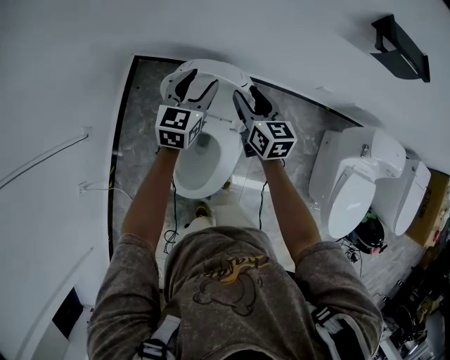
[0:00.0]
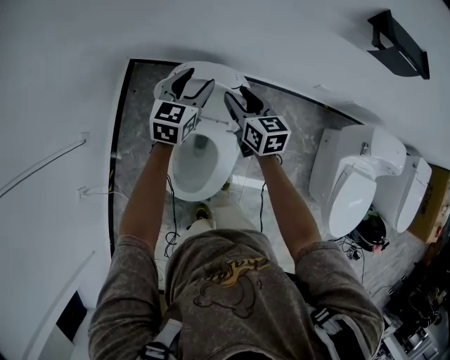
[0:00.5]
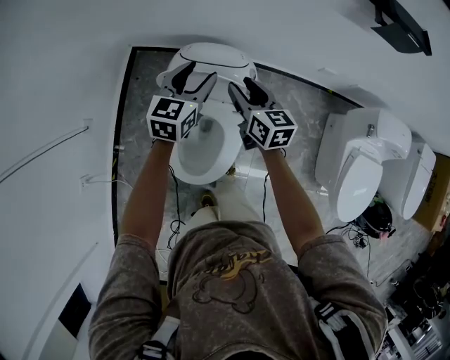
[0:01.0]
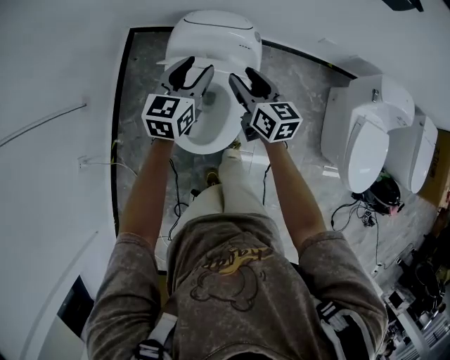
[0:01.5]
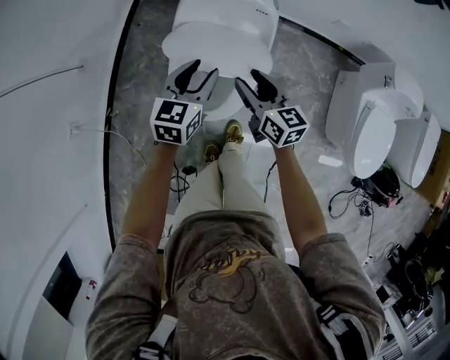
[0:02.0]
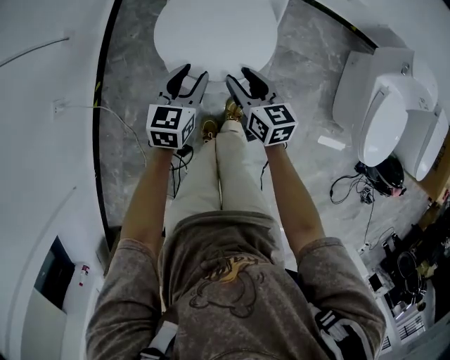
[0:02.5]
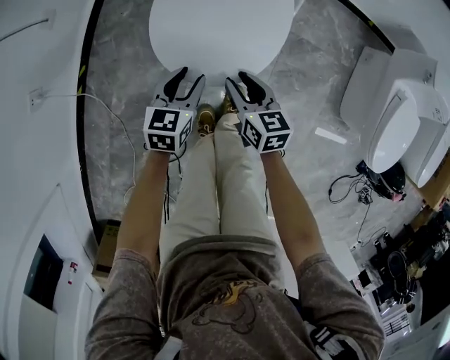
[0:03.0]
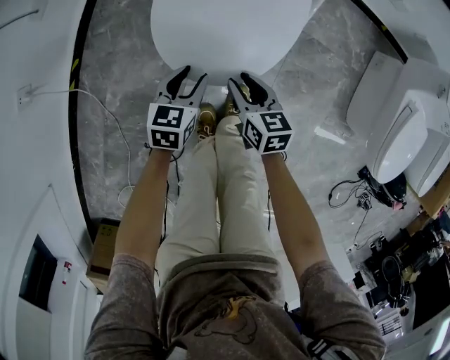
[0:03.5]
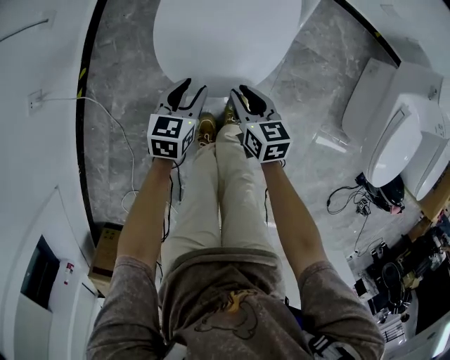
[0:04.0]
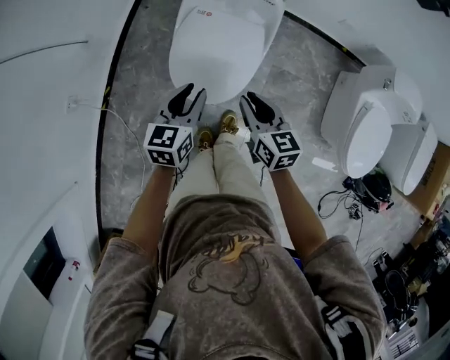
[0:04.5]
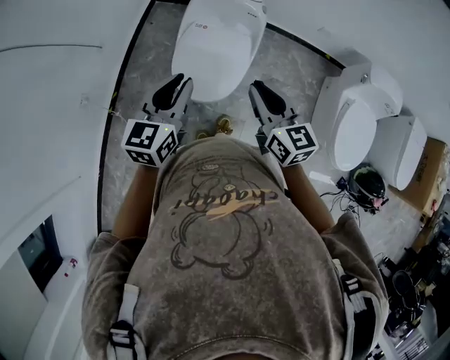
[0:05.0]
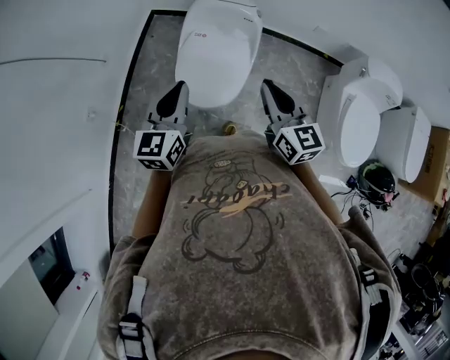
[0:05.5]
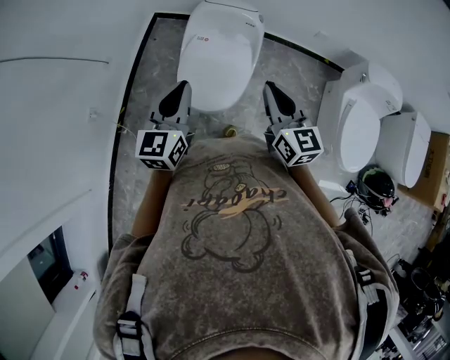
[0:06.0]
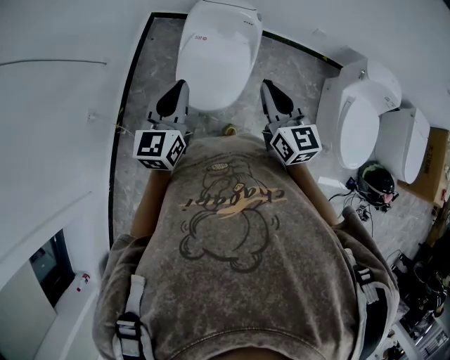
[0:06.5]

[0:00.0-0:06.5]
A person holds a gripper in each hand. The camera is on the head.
0:00.0 to 0:02.0: The grippers both shift backward by approximately 30 cm.
0:02.0 to 0:04.5: The two grippers go about 10 cm backward. The left gripper goes downward and returns, approximately 35 cm each way, while the right gripper goes downward and returns, about 30 cm each way, and closes its fingers.
0:04.5 to 0:06.5: Both grippers move upward, roughly 20 cm. The left gripper turns by about 20 degrees, and closes up. Meanwhile the right gripper swivels about 20 degrees.

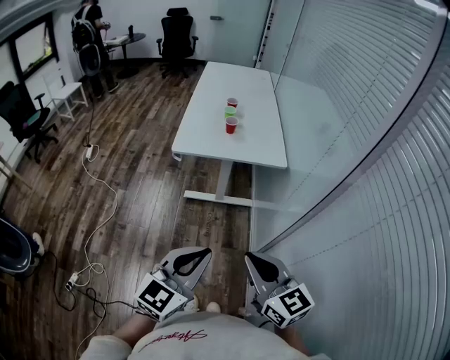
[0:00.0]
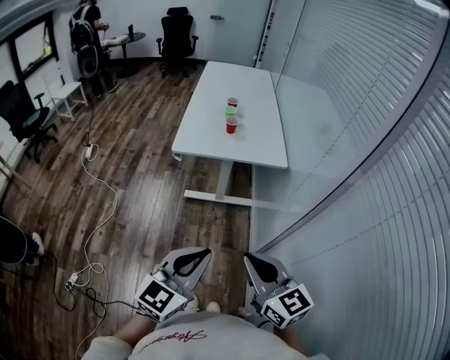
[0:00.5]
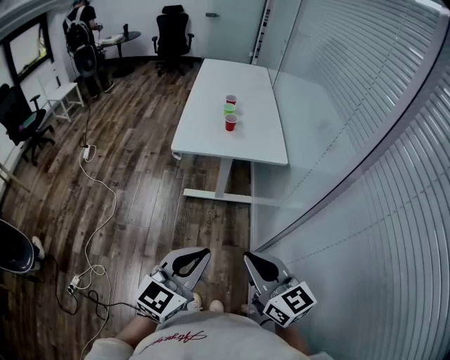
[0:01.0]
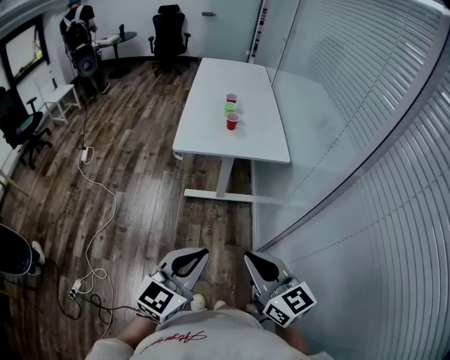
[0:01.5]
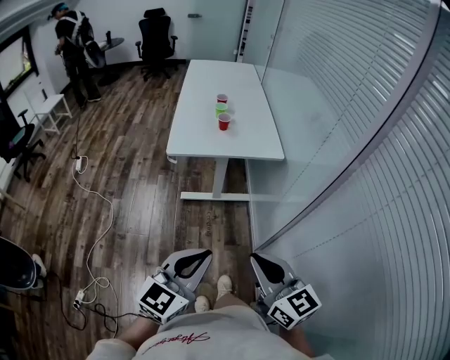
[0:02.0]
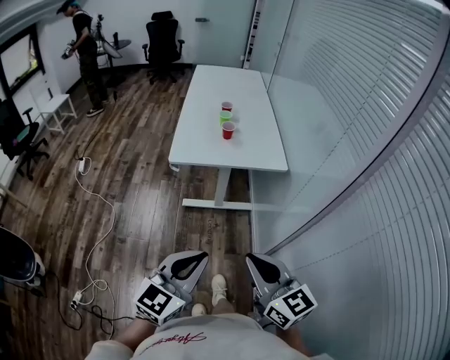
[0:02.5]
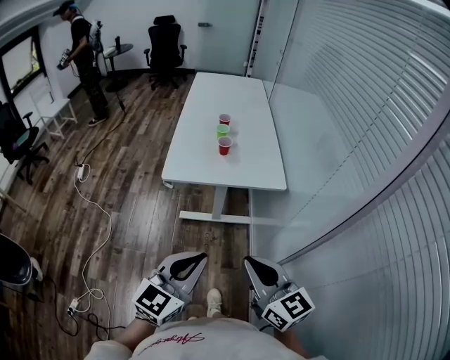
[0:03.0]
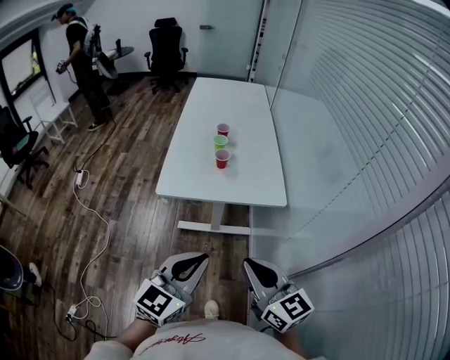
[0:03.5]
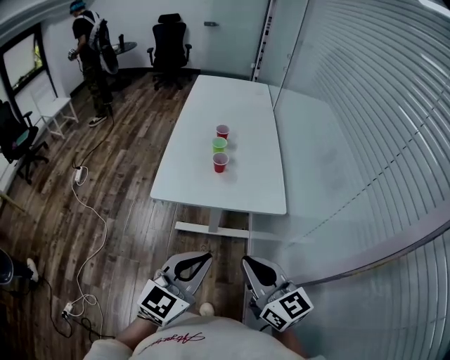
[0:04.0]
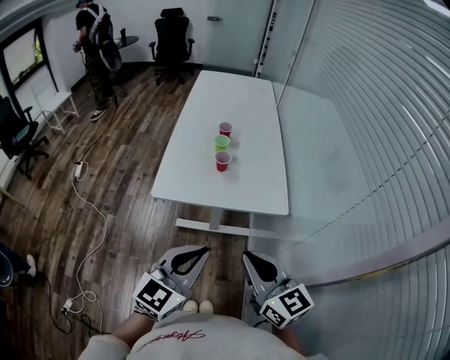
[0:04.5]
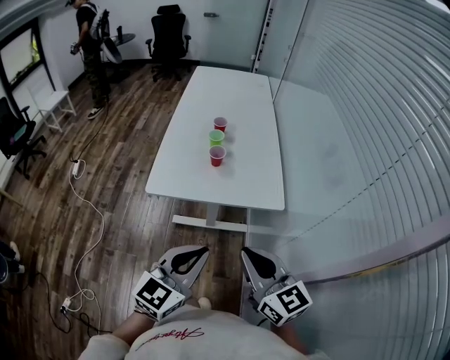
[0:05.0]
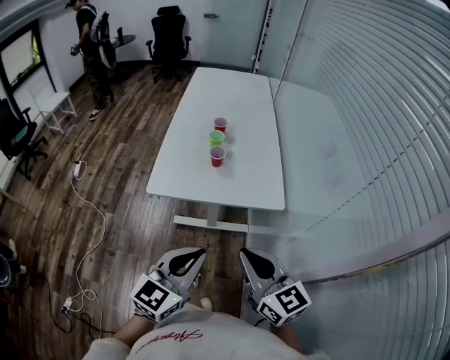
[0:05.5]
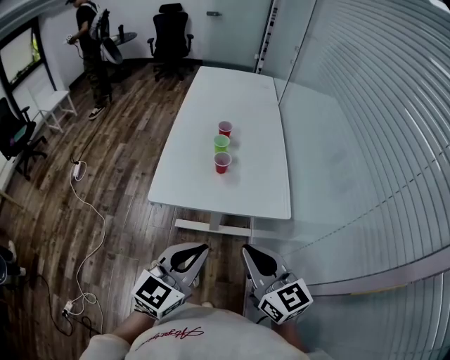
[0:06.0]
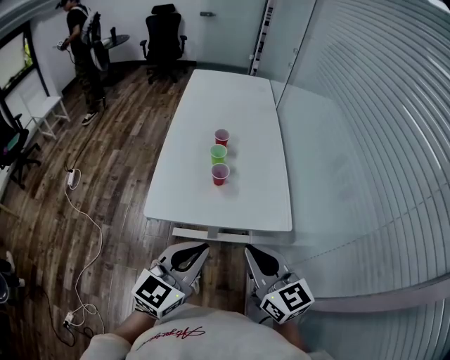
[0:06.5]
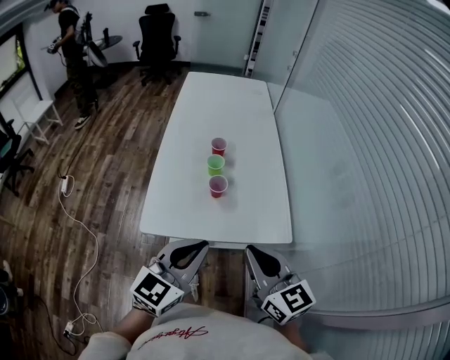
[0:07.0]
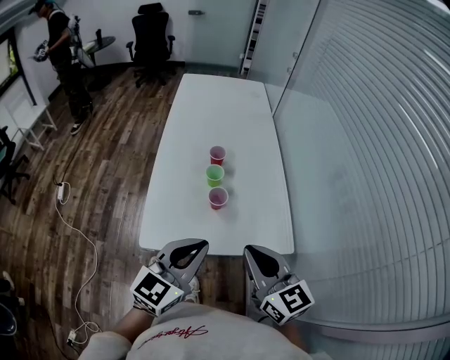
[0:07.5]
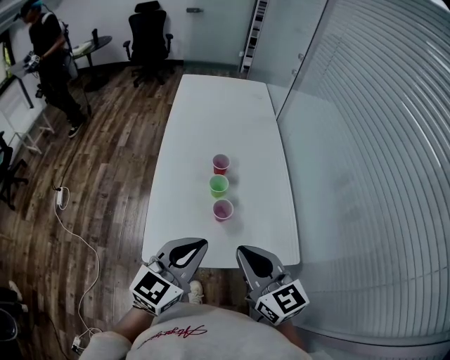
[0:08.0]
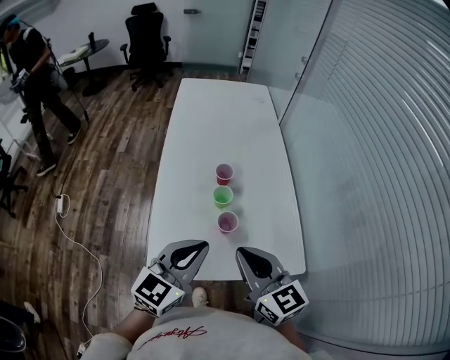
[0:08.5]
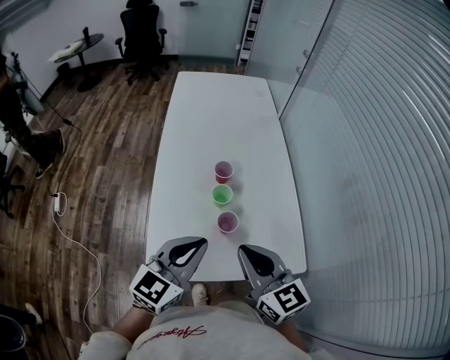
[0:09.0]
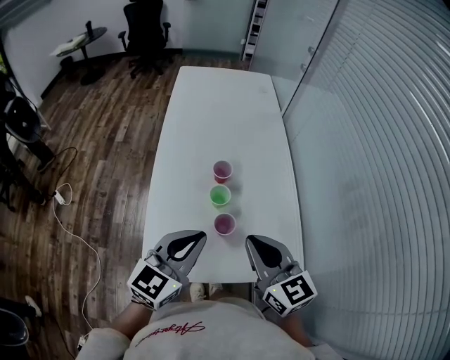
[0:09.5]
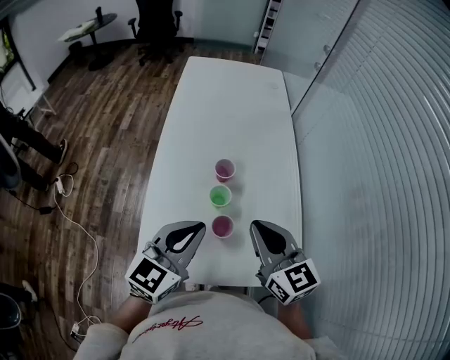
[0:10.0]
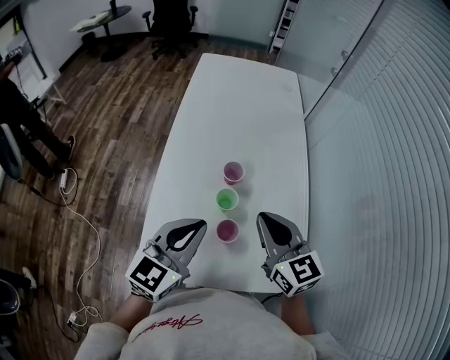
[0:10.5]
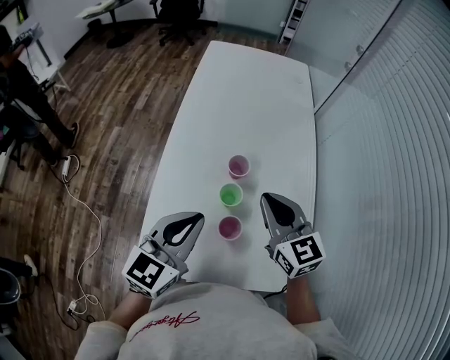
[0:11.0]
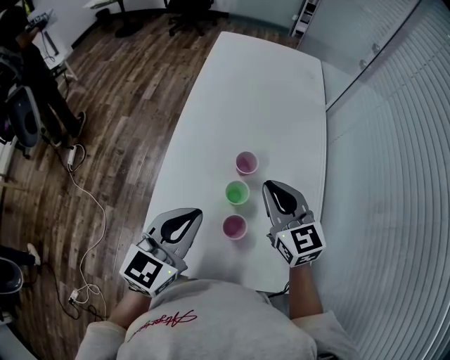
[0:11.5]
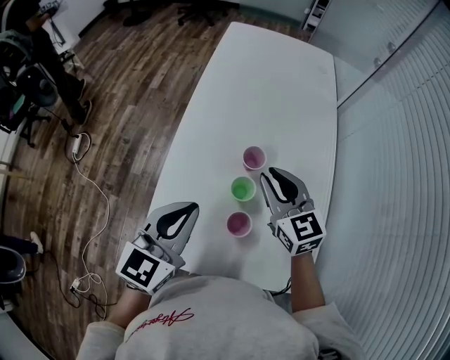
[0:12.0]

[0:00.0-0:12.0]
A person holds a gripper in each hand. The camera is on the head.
0:00.0 to 0:02.0: There are only small adjustments of the grippers.
0:02.0 to 0:04.0: Both grippers travel together forward, approximately 30 cm.
0:04.0 to 0:06.0: The two grippers go roughly 10 cm forward.
0:06.0 to 0:08.0: Both grippers move forward, about 25 cm.
0:08.0 to 0:10.0: Both grippers travel together forward, some 15 cm.
0:10.0 to 0:12.0: The left gripper moves forward, approximately 5 cm. The right gripper goes roughly 20 cm forward and downward.

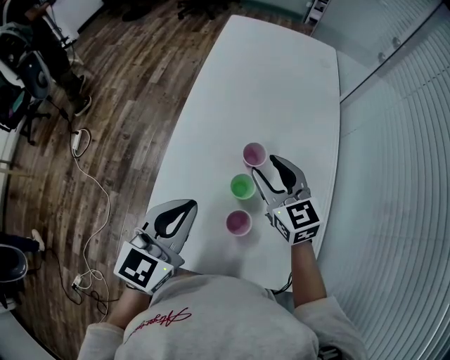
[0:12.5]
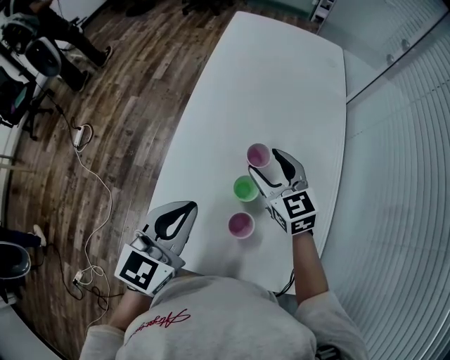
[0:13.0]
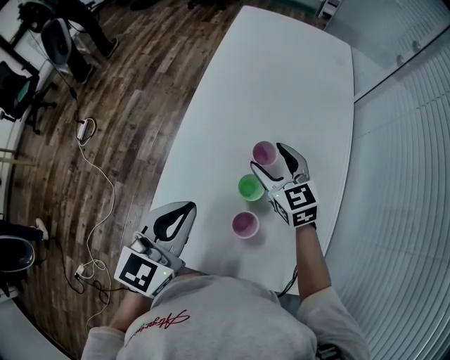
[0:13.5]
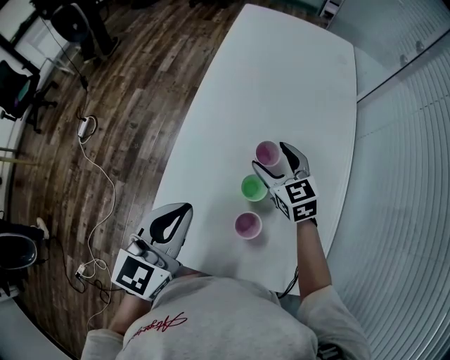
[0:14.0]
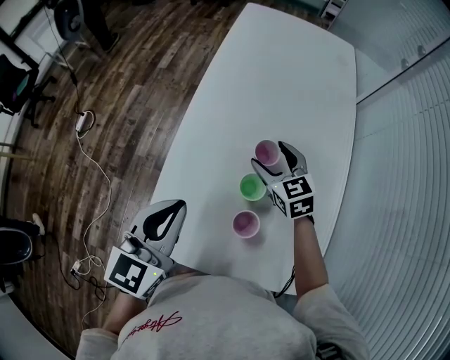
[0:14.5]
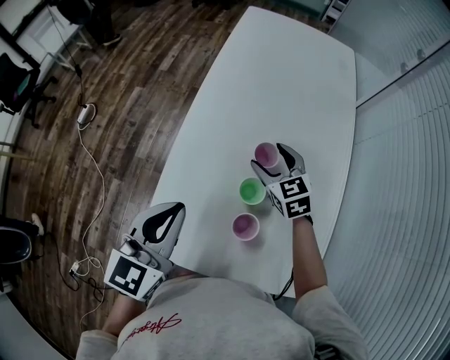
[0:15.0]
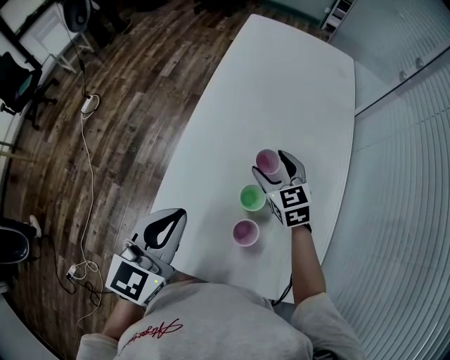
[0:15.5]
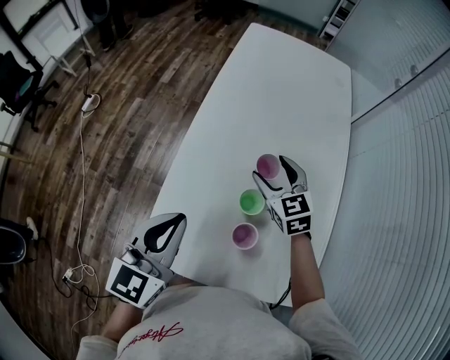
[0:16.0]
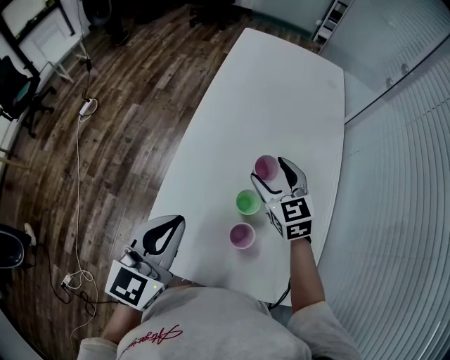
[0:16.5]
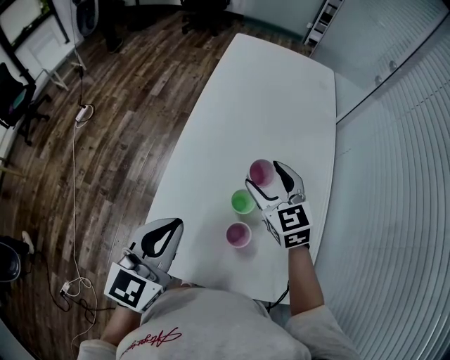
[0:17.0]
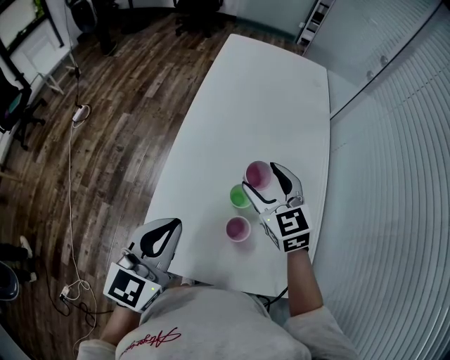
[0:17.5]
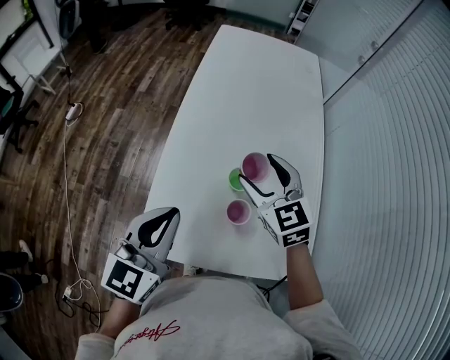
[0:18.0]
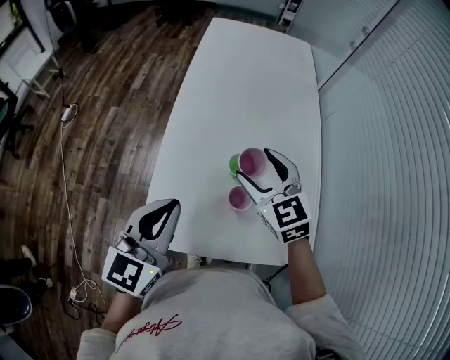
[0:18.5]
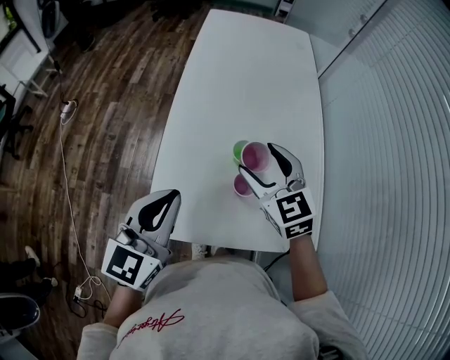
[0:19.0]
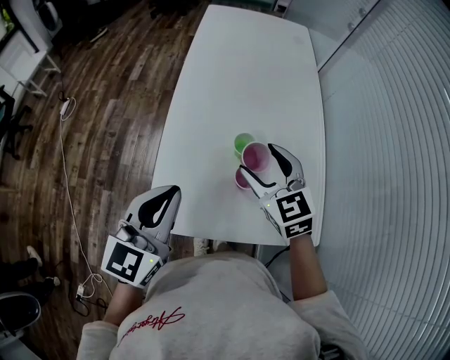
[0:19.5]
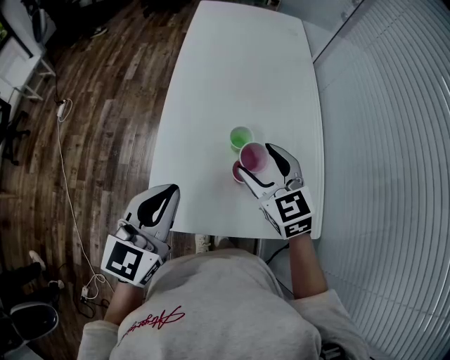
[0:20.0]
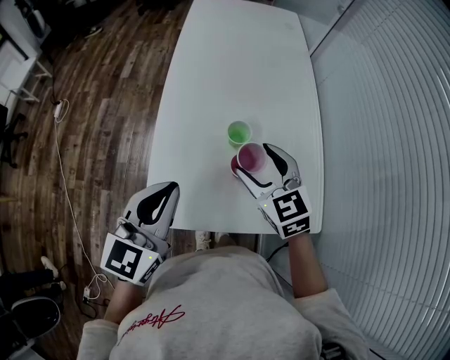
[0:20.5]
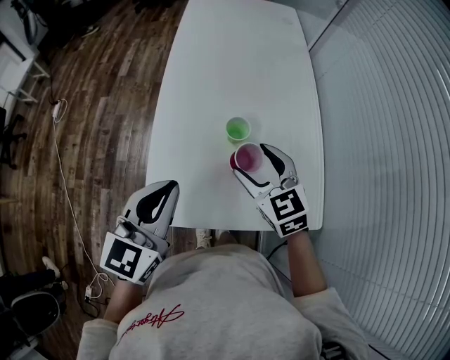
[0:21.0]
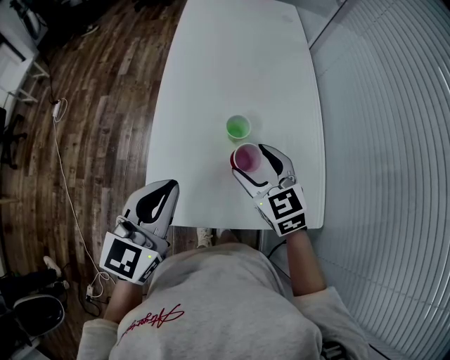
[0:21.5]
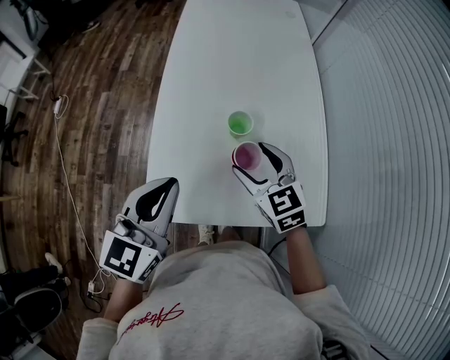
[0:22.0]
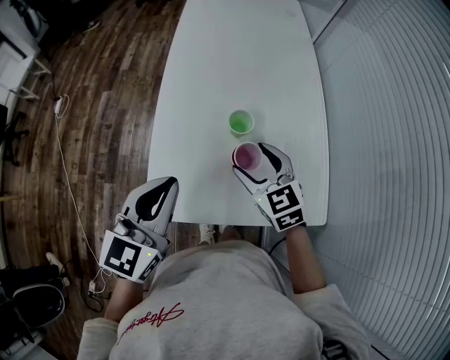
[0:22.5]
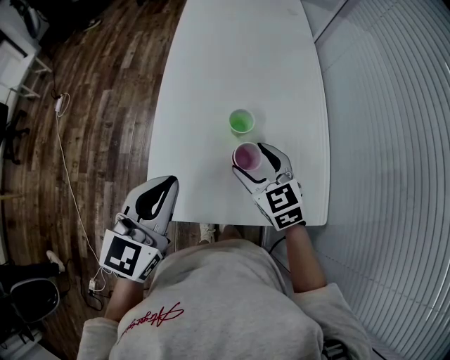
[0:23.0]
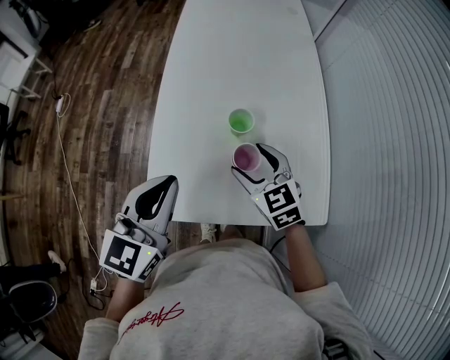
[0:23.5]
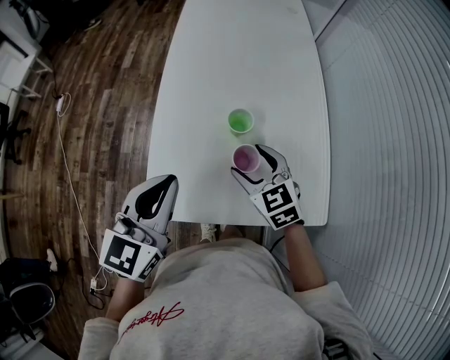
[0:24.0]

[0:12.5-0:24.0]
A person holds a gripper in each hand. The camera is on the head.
0:12.5 to 0:14.5: The right gripper shifts roughly 10 cm downward and forward, and opens.
0:14.5 to 0:16.5: The right gripper travels upward by some 5 cm.
0:16.5 to 0:18.5: The left gripper is displaced backward by approximately 5 cm, while the right gripper is displaced backward and upward by about 15 cm.
0:18.5 to 0:20.0: The right gripper travels backward by some 5 cm.
0:20.0 to 0:22.0: The right gripper moves about 5 cm.
0:22.0 to 0:24.0: There are only small adjustments of the grippers.
